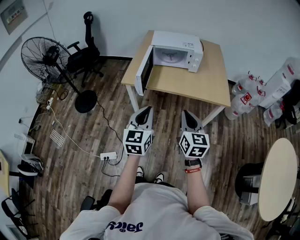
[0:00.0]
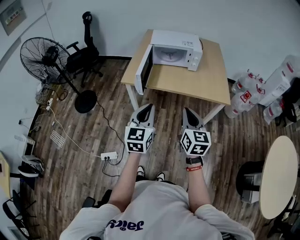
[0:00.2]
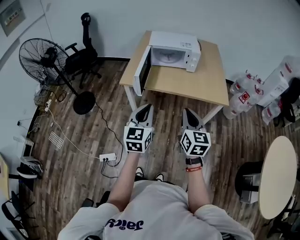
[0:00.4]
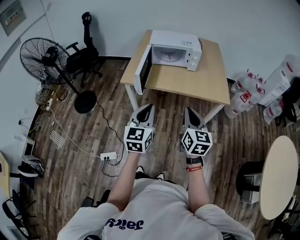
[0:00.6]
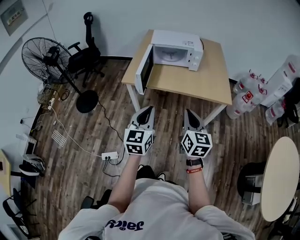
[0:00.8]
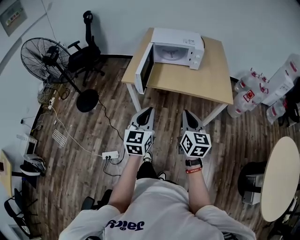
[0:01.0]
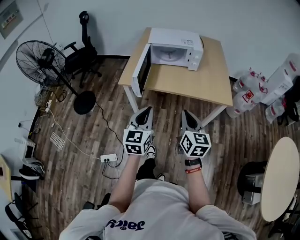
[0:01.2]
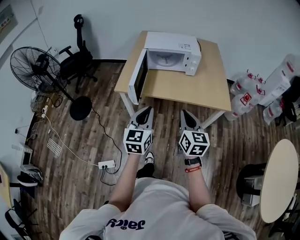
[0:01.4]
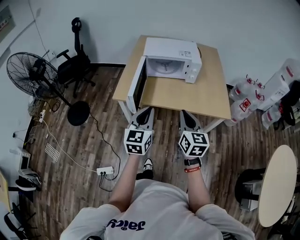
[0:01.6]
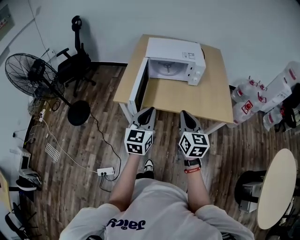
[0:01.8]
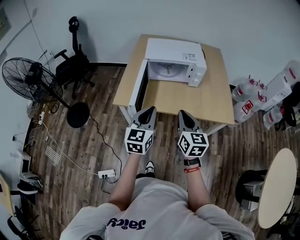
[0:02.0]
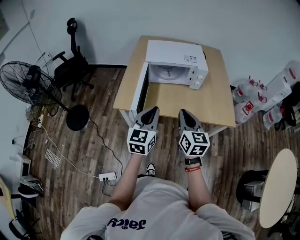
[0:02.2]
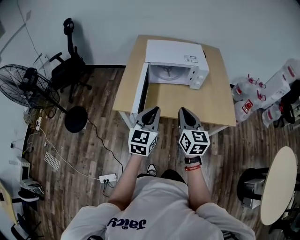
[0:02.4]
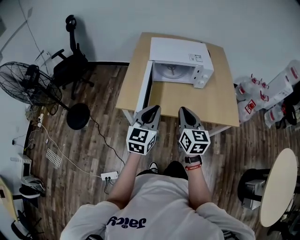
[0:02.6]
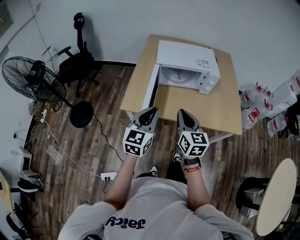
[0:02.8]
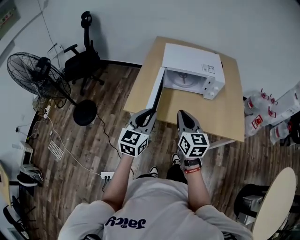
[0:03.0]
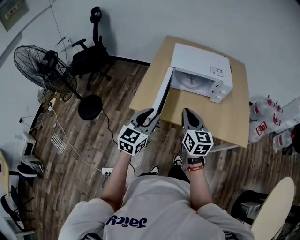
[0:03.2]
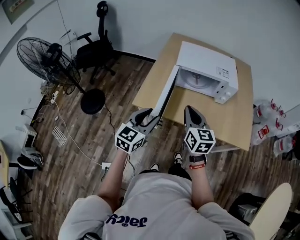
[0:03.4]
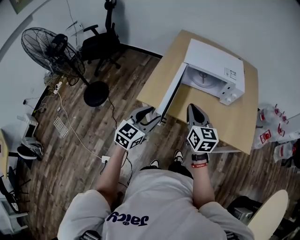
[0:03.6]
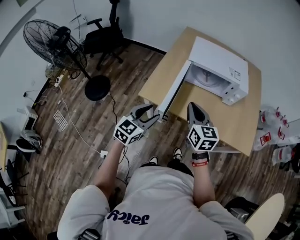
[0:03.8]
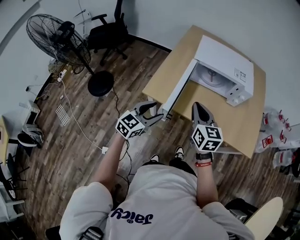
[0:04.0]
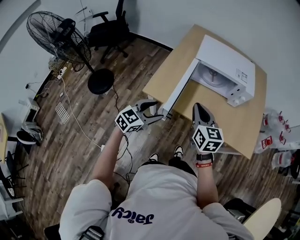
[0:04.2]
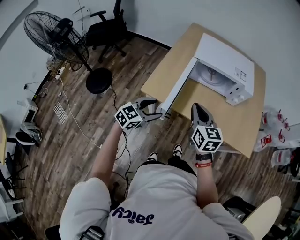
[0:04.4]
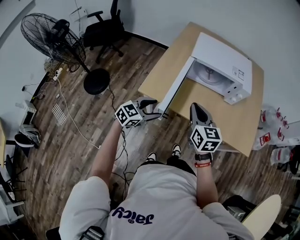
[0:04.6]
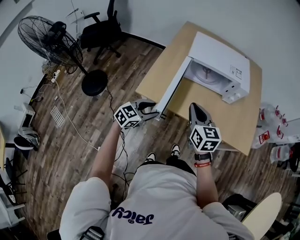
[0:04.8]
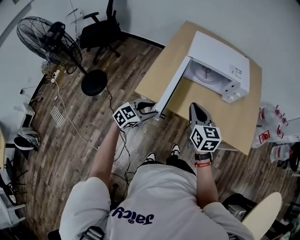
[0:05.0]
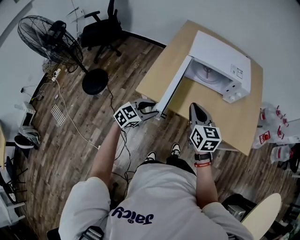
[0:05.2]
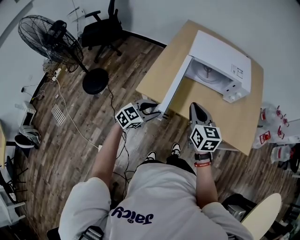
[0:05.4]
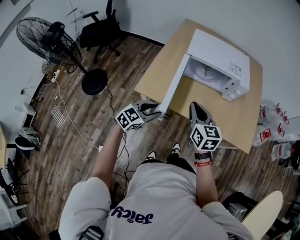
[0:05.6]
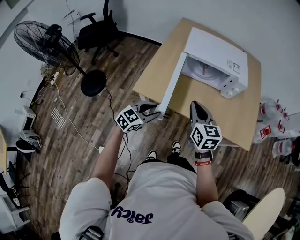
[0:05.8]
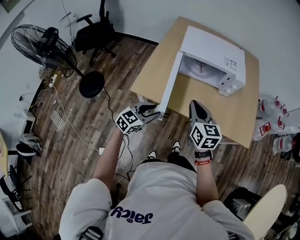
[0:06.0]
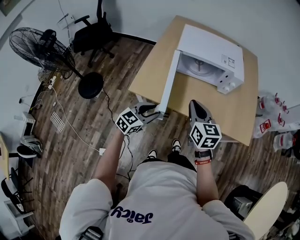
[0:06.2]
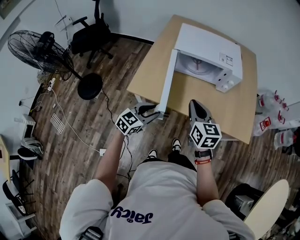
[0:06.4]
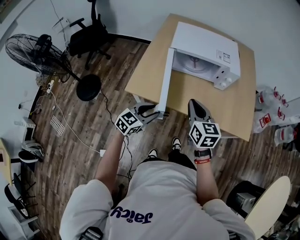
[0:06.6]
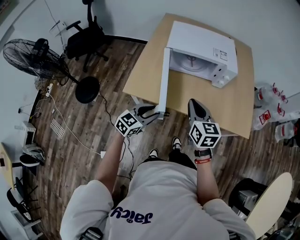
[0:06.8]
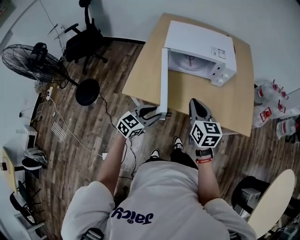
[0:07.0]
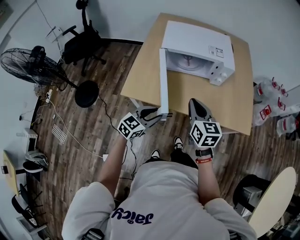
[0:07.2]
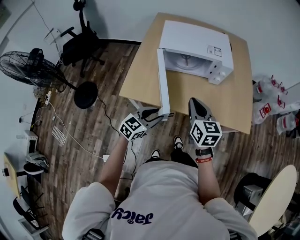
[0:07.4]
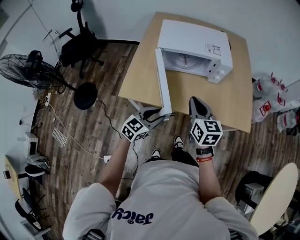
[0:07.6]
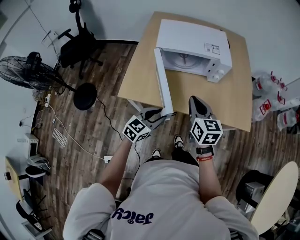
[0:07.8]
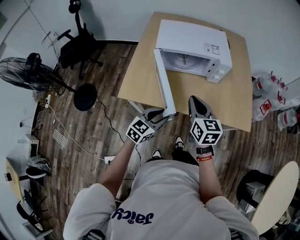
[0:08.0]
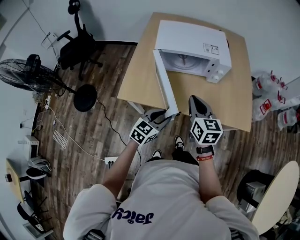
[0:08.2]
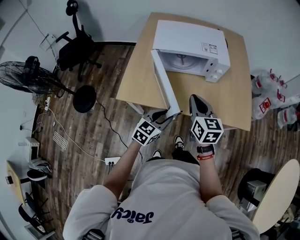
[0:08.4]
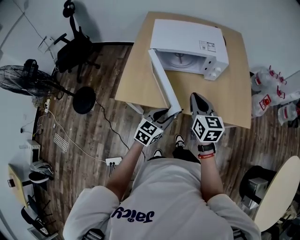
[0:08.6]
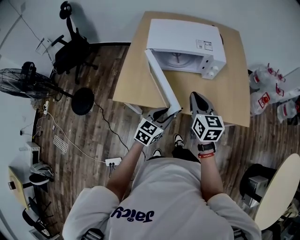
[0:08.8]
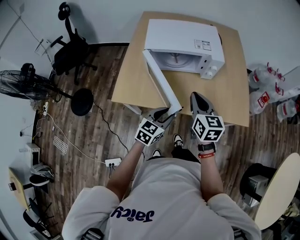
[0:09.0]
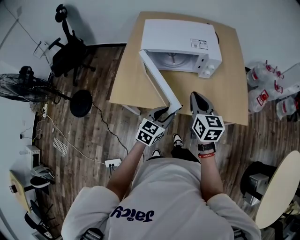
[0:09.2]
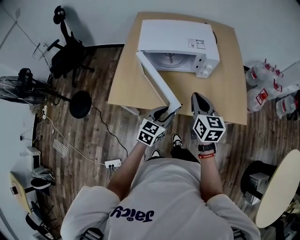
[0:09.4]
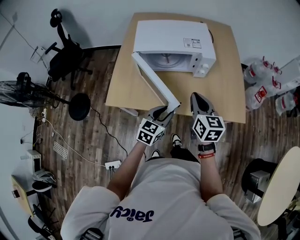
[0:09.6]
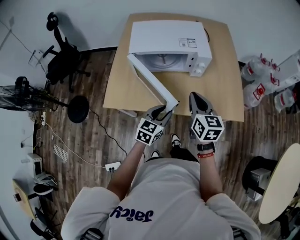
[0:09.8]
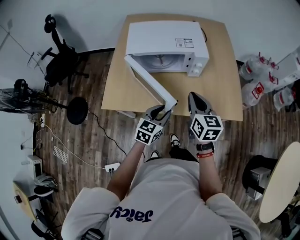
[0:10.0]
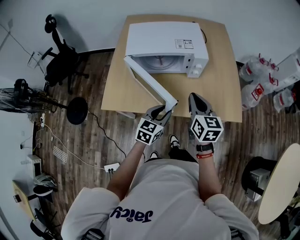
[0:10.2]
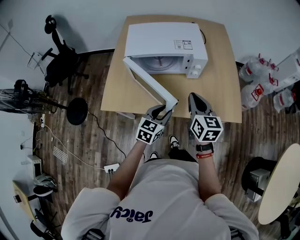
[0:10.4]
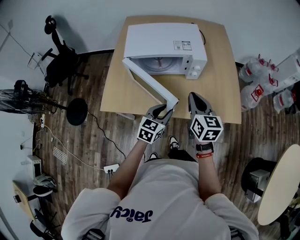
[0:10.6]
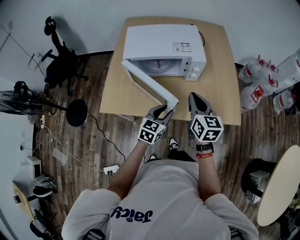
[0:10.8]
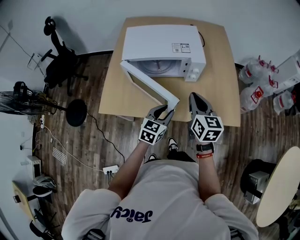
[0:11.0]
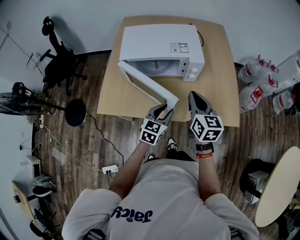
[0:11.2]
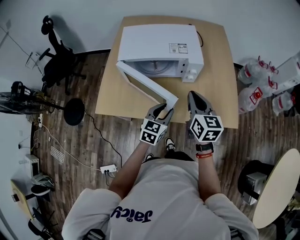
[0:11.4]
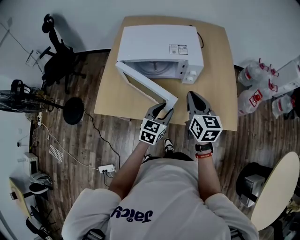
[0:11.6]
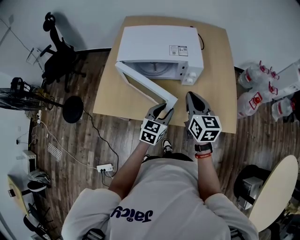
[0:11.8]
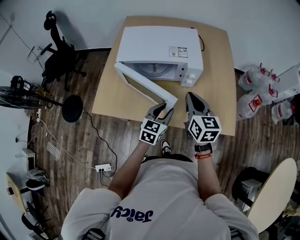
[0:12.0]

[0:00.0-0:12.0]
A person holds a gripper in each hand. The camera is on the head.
0:00.0 to 0:01.6: The two grippers go roughly 20 cm forward.
0:01.6 to 0:03.0: Both grippers travel together forward and to the left, approximately 20 cm.
0:03.0 to 0:04.4: The left gripper goes some 15 cm downward and to the left, swivels some 30 degrees, and opens up; the right gripper travels forward by roughly 5 cm.
0:04.4 to 0:06.0: The left gripper shifts by approximately 5 cm, and closes up, while the right gripper ends up some 5 cm from where it was.
0:06.0 to 0:07.6: Both grippers travel together to the right, about 10 cm.
0:07.6 to 0:09.0: The right gripper shifts by approximately 5 cm, while the left gripper is displaced to the right by approximately 5 cm.
0:09.0 to 0:10.4: The left gripper is displaced to the right and forward by approximately 10 cm. The right gripper heads to the right, covering some 10 cm.
0:10.4 to 0:12.0: The left gripper moves forward and to the right, approximately 10 cm. Meanwhile the right gripper is displaced forward by about 5 cm.

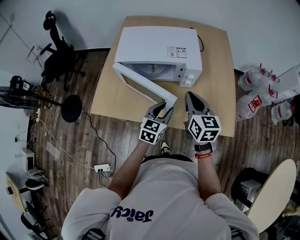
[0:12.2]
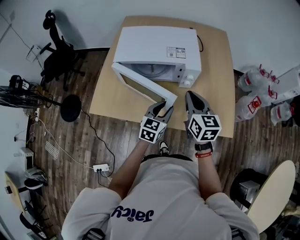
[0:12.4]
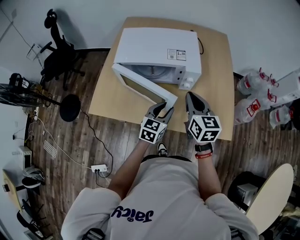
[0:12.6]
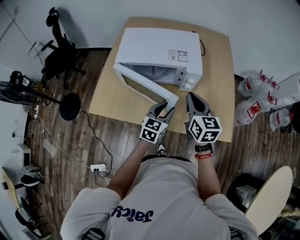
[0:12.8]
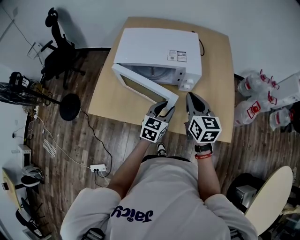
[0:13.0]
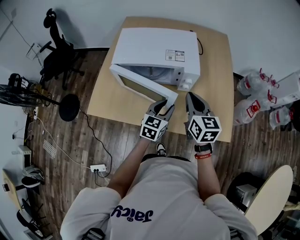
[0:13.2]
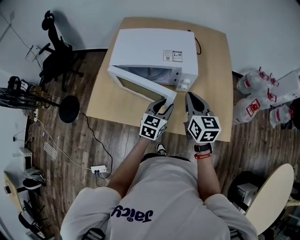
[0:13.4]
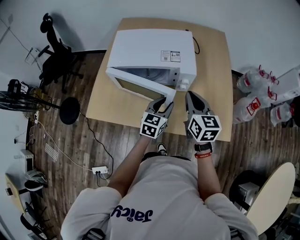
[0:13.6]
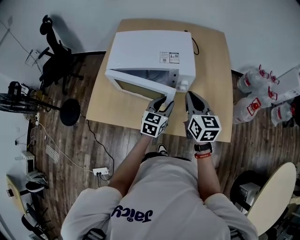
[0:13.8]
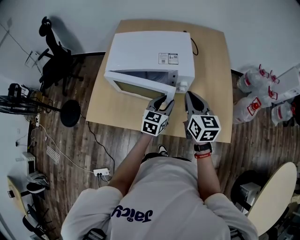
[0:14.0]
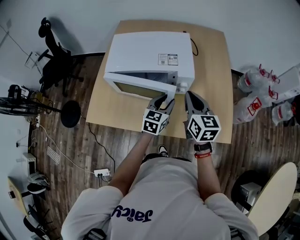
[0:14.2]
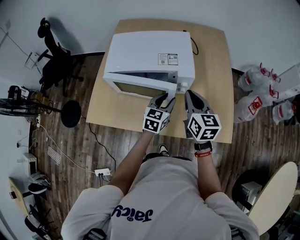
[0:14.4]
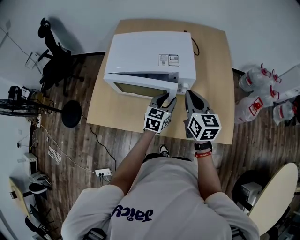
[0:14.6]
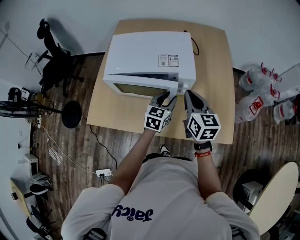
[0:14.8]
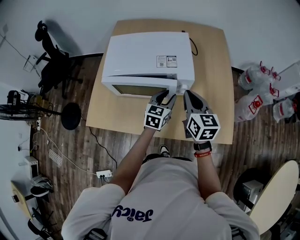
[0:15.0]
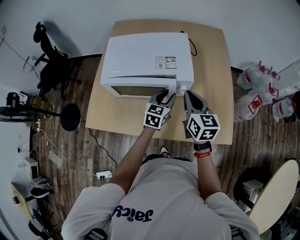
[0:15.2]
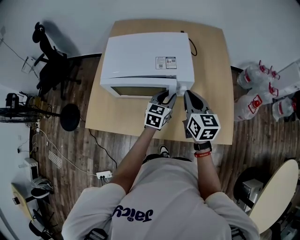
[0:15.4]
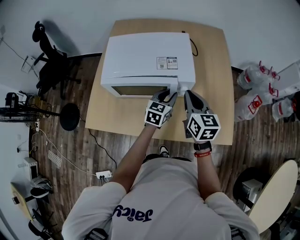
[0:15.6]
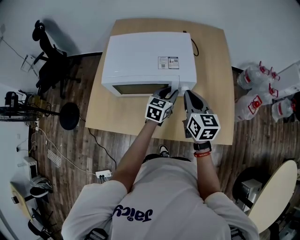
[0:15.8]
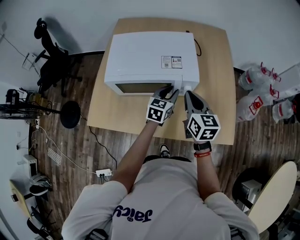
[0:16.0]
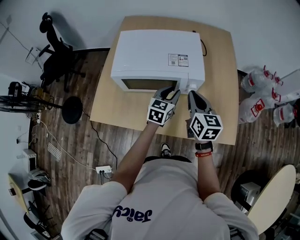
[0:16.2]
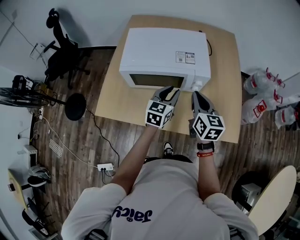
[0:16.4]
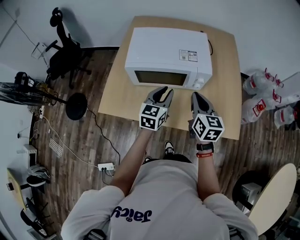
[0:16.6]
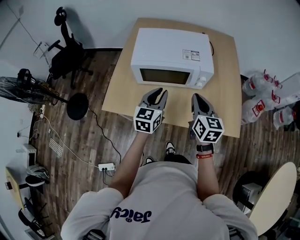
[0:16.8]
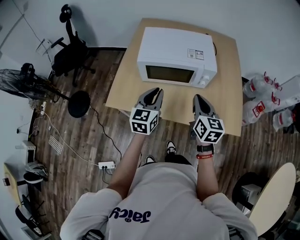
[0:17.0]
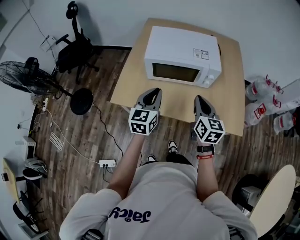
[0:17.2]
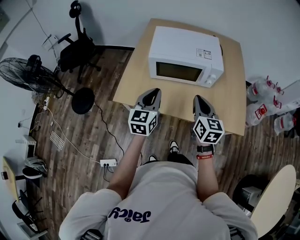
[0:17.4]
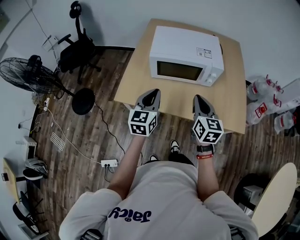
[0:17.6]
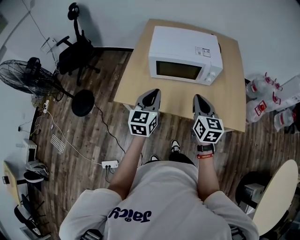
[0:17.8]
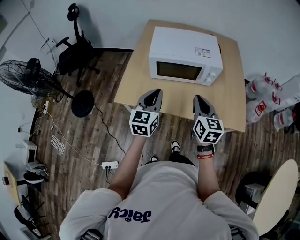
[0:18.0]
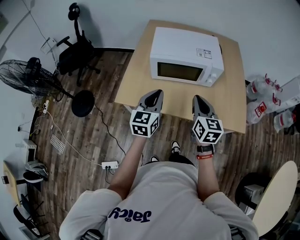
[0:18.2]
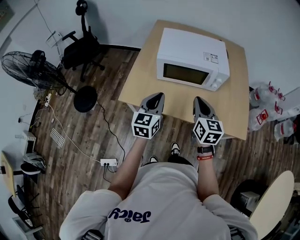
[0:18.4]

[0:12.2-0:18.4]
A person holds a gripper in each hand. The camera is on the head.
0:12.2 to 0:13.8: The left gripper is displaced forward by some 10 cm; the right gripper changes place by roughly 5 cm.
0:13.8 to 0:15.4: The left gripper shifts roughly 10 cm forward. Meanwhile the right gripper shifts about 5 cm forward.
0:15.4 to 0:16.8: The left gripper is displaced to the left, backward and upward by some 25 cm. The right gripper heads backward and to the left, covering some 15 cm.
0:16.8 to 0:18.4: Both grippers move to the left and backward, about 15 cm.

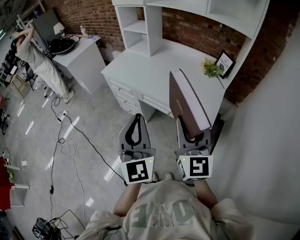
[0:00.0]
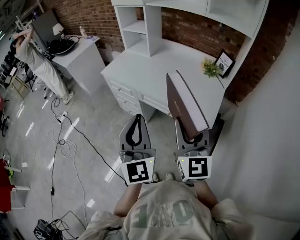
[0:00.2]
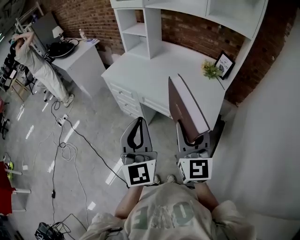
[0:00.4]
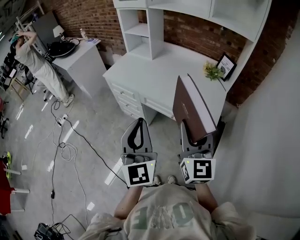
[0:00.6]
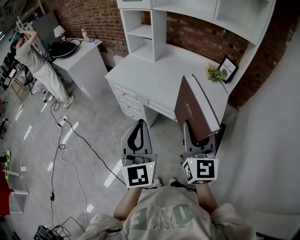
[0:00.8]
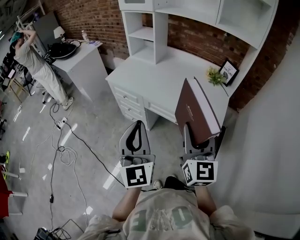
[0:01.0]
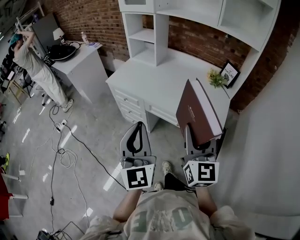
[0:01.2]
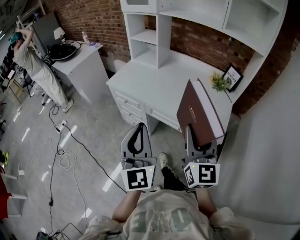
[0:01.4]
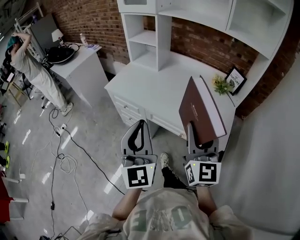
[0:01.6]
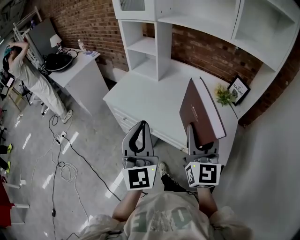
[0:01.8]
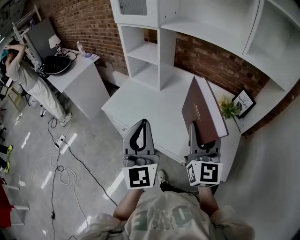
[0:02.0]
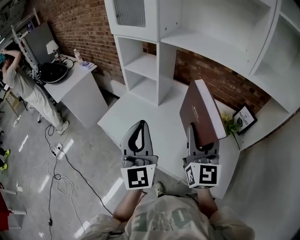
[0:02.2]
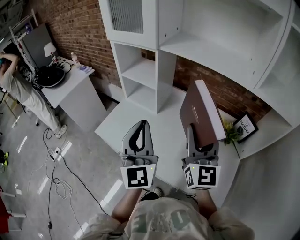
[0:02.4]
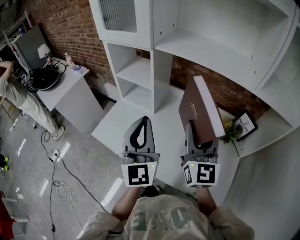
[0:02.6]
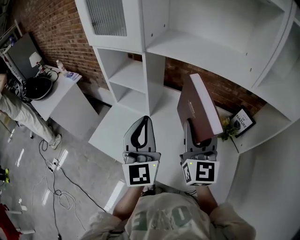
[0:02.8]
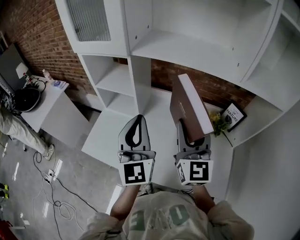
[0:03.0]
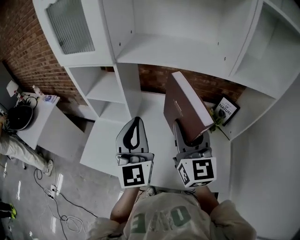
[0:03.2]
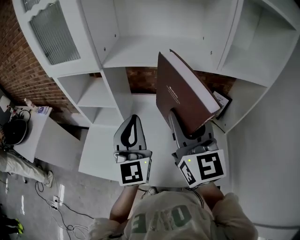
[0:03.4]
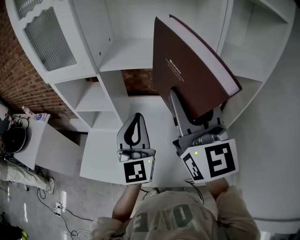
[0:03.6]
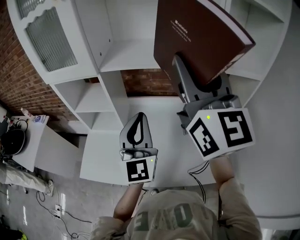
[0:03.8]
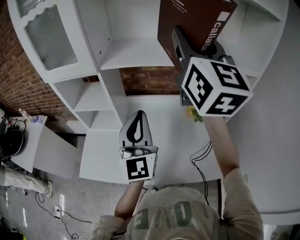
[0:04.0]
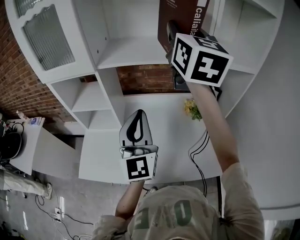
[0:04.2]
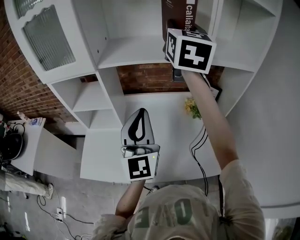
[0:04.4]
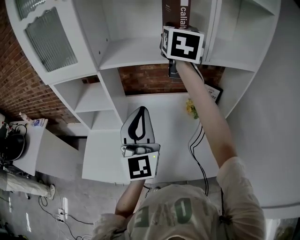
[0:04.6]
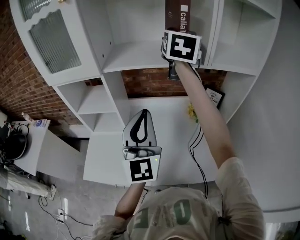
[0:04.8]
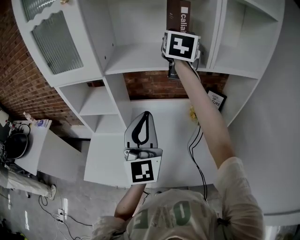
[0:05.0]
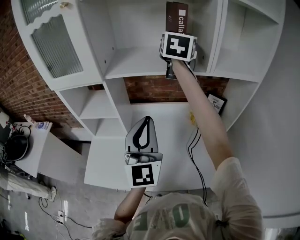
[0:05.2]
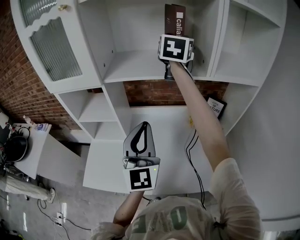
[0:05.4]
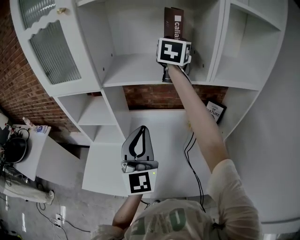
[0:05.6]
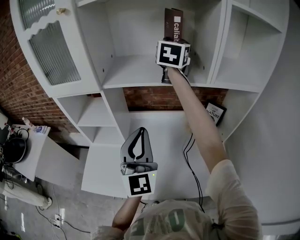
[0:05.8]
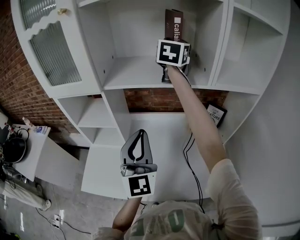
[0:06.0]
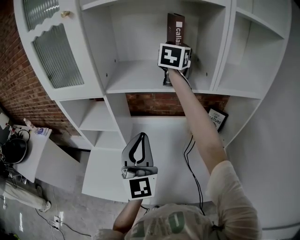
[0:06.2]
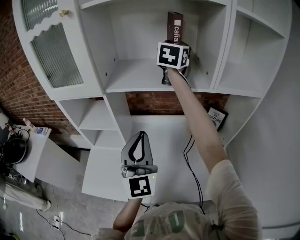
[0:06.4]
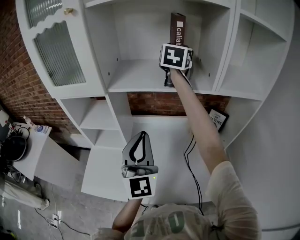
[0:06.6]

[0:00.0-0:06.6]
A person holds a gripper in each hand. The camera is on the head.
0:00.0 to 0:01.6: The right gripper is displaced forward by about 10 cm, while the left gripper heads forward and to the left, covering roughly 15 cm.
0:01.6 to 0:03.2: The two grippers go about 40 cm forward.
0:03.2 to 0:05.0: The left gripper shifts by some 5 cm, while the right gripper shifts approximately 30 cm forward and upward, and swivels about 30 degrees.
0:05.0 to 0:06.6: The right gripper heads forward, covering some 10 cm.
